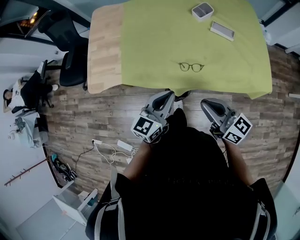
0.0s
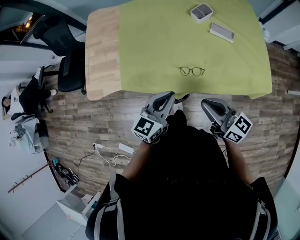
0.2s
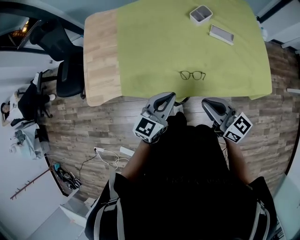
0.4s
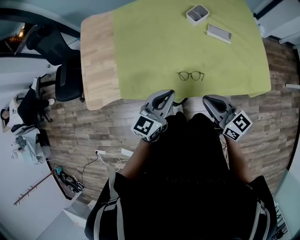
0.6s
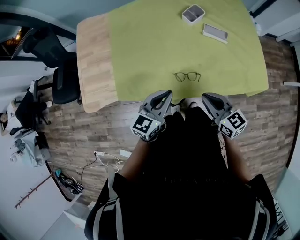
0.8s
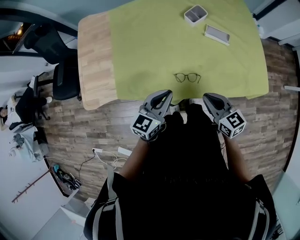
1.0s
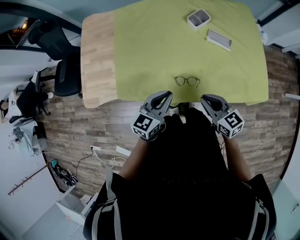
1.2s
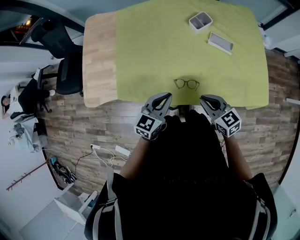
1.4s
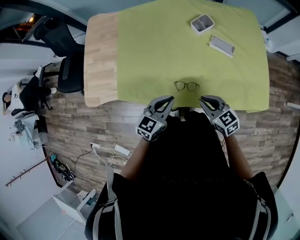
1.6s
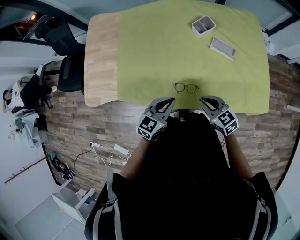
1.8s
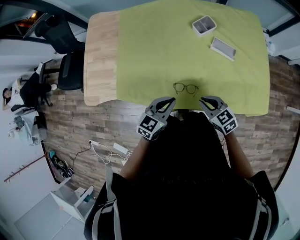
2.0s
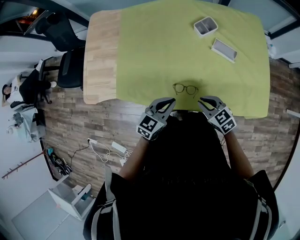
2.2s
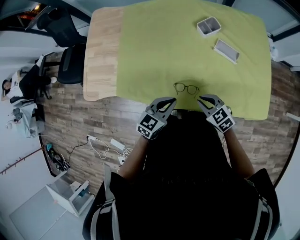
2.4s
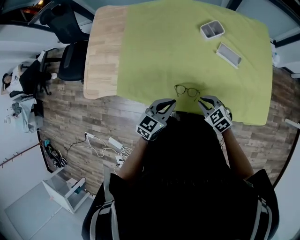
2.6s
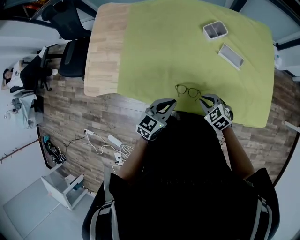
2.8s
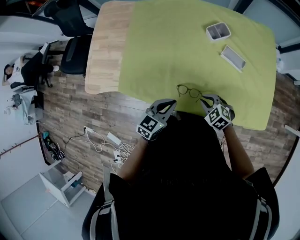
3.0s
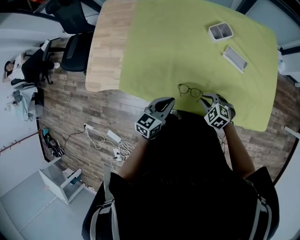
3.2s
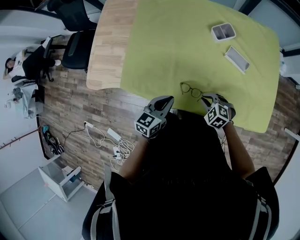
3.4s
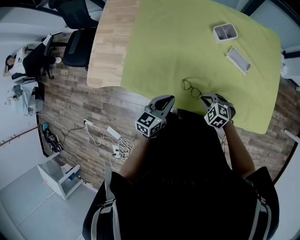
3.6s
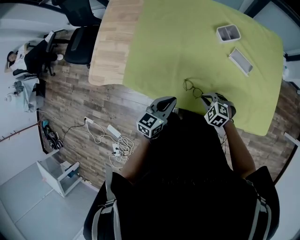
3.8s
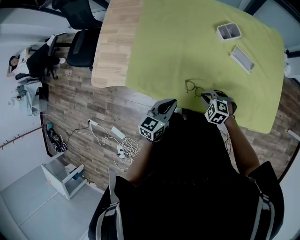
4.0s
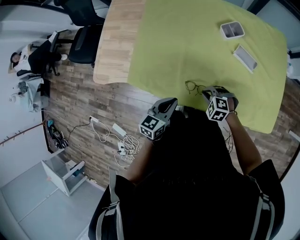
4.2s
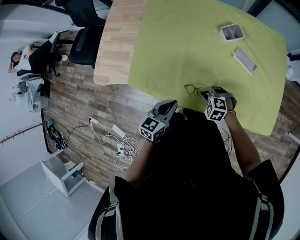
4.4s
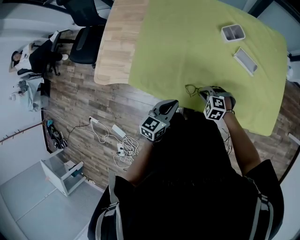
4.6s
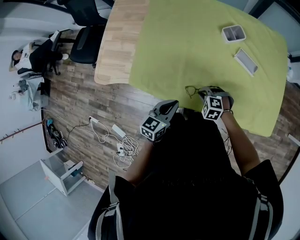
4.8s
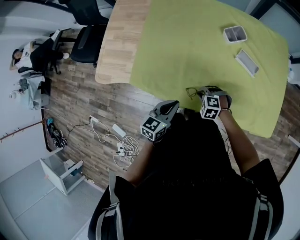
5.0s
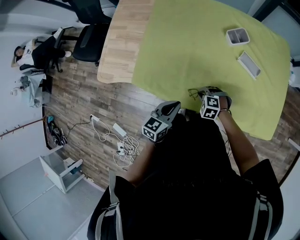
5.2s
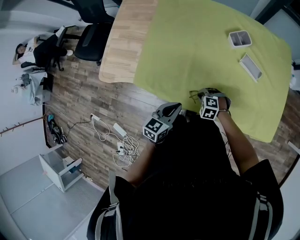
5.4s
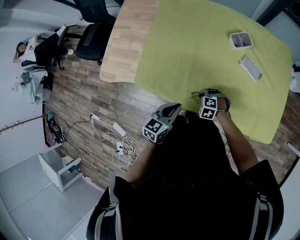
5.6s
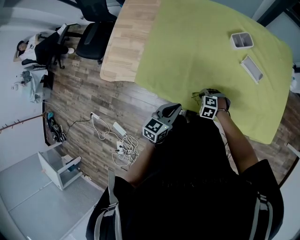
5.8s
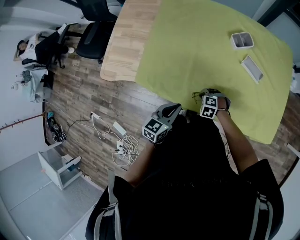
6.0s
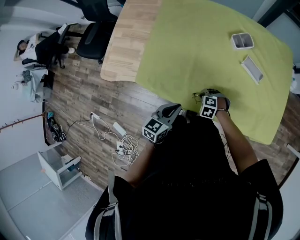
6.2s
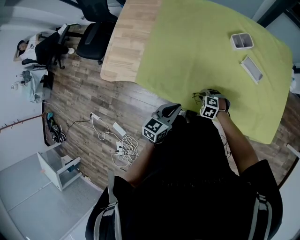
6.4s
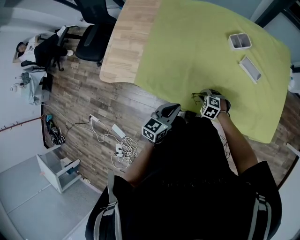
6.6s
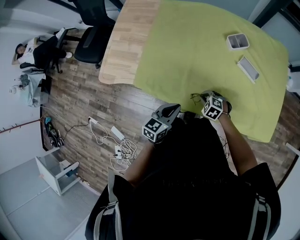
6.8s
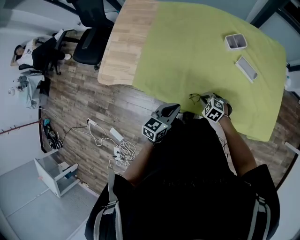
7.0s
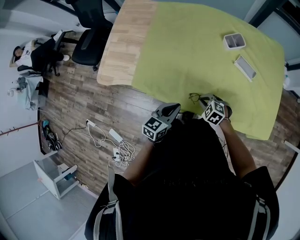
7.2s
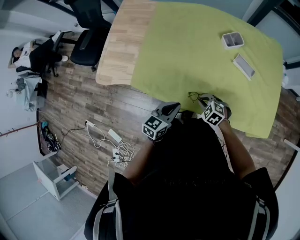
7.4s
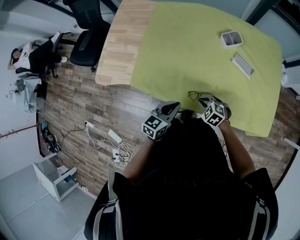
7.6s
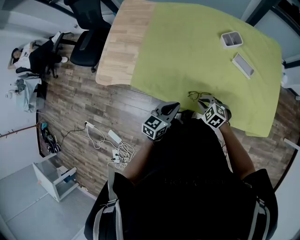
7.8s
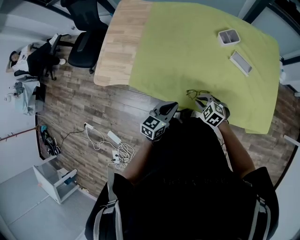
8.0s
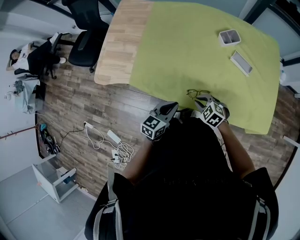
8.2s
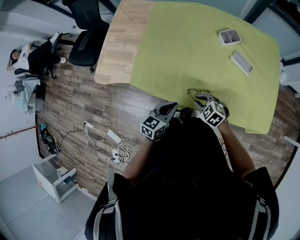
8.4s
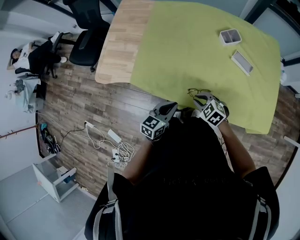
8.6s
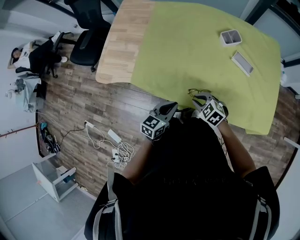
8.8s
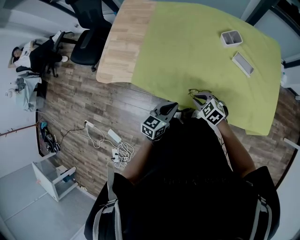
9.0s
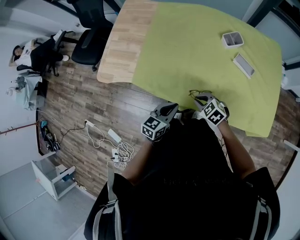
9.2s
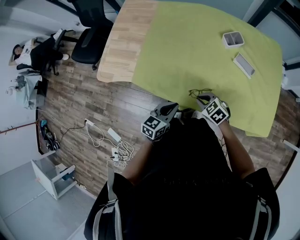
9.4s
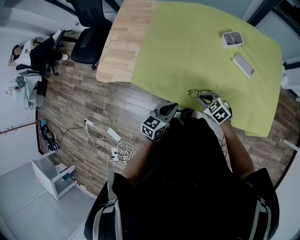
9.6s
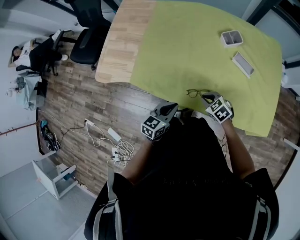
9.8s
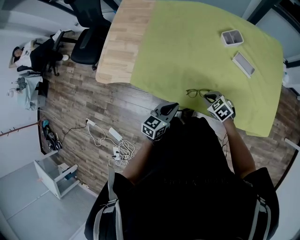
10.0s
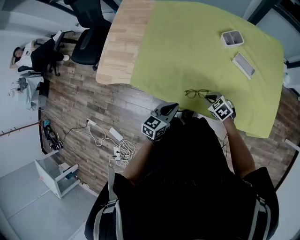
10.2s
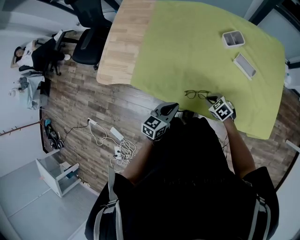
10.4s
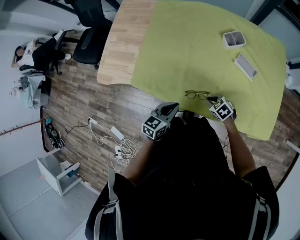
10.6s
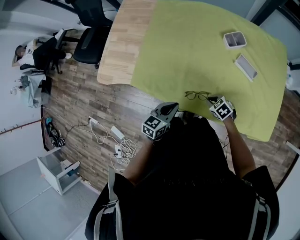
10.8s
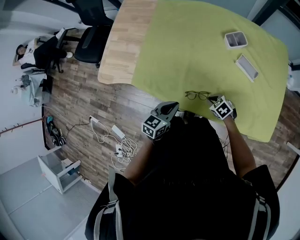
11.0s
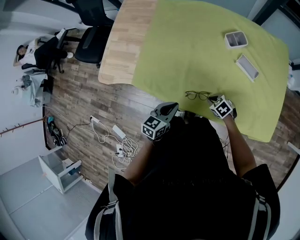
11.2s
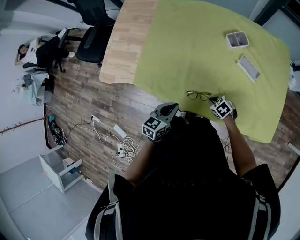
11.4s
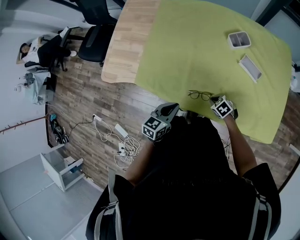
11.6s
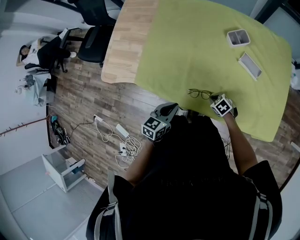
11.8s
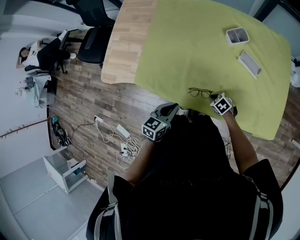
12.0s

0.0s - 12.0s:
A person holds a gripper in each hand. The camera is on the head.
0.0s - 1.6s: The left gripper travels forward and downward by approximately 10 cm. The right gripper travels downward and forward by about 15 cm, and turns by approximately 30 degrees.
1.6s - 3.0s: The right gripper is displaced downward by approximately 10 cm, and rotates some 40 degrees.
3.0s - 4.4s: The right gripper travels to the left by about 5 cm, and swivels about 30 degrees.
4.4s - 6.0s: The right gripper heads downward, covering some 5 cm.
6.0s - 7.6s: The right gripper is displaced upward by roughly 10 cm, and swivels approximately 20 degrees.
7.6s - 9.0s: The right gripper shifts by roughly 5 cm.
9.0s - 10.4s: The right gripper is displaced to the right and downward by about 10 cm.
10.4s - 12.0s: The right gripper is displaced downward by about 5 cm.

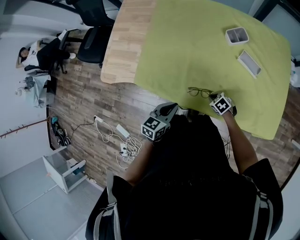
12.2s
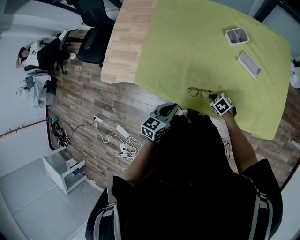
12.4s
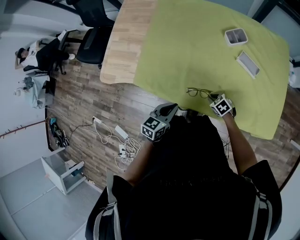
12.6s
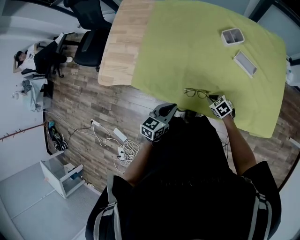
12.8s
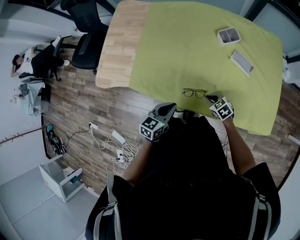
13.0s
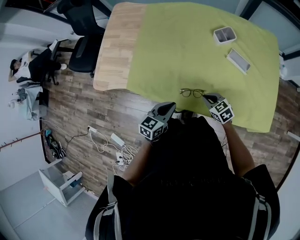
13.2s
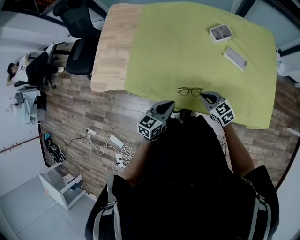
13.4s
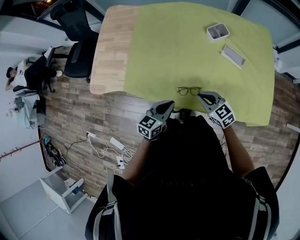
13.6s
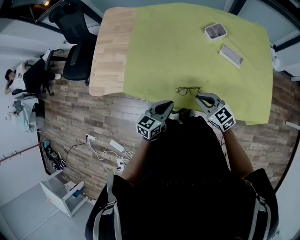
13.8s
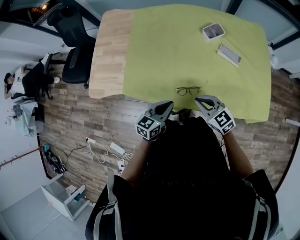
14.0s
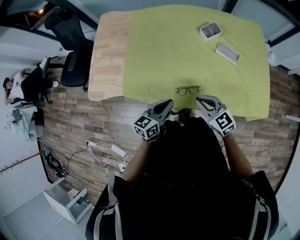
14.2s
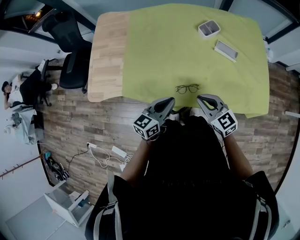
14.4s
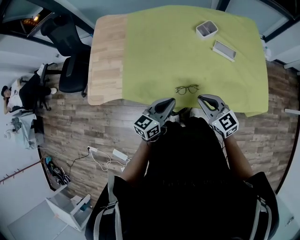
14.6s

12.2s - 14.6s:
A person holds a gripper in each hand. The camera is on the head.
12.2s - 13.4s: The right gripper travels upward by about 15 cm, and swivels roughly 30 degrees.
13.4s - 14.6s: The right gripper heads upward, covering roughly 10 cm, and changes its angle by some 20 degrees, while the left gripper shifts about 5 cm upward.

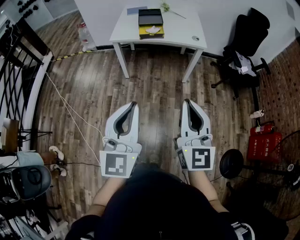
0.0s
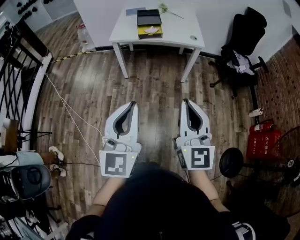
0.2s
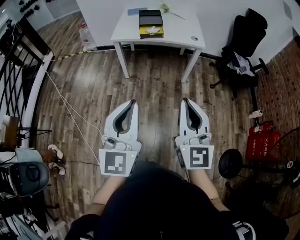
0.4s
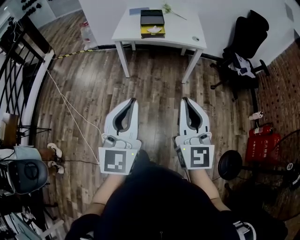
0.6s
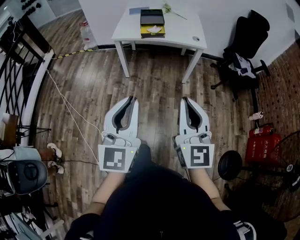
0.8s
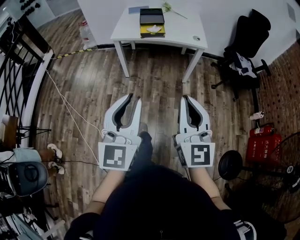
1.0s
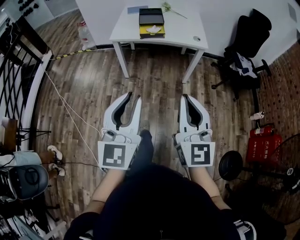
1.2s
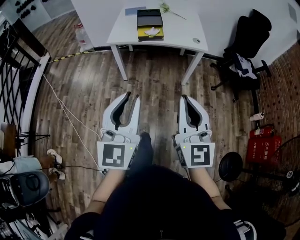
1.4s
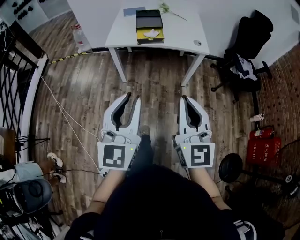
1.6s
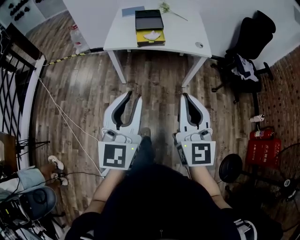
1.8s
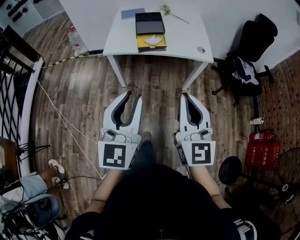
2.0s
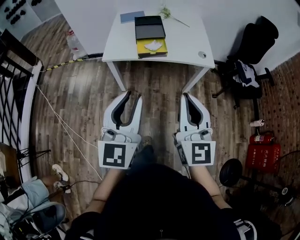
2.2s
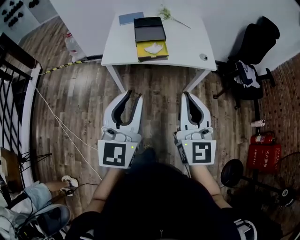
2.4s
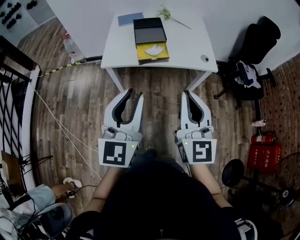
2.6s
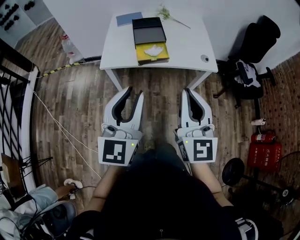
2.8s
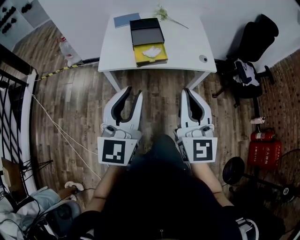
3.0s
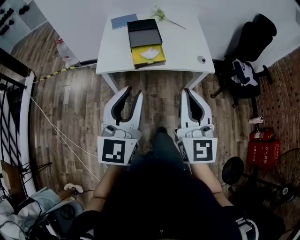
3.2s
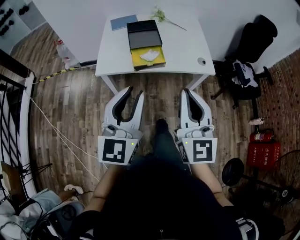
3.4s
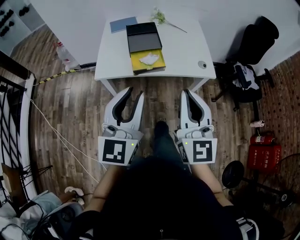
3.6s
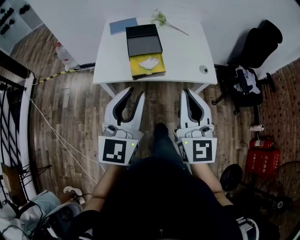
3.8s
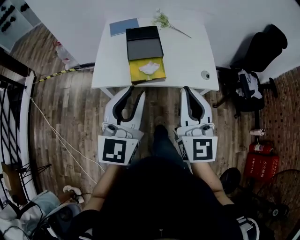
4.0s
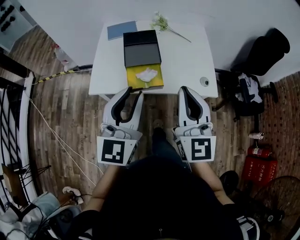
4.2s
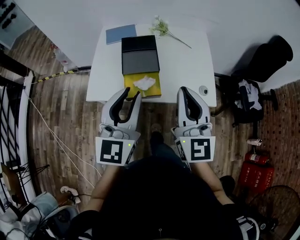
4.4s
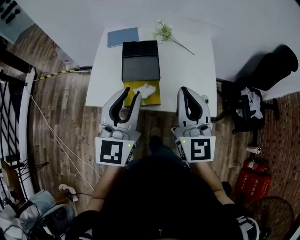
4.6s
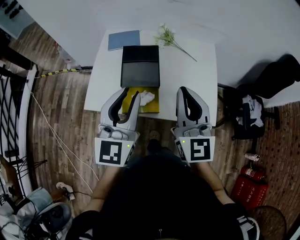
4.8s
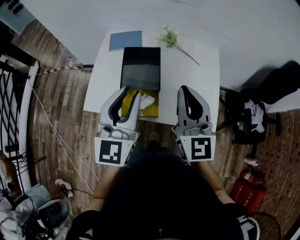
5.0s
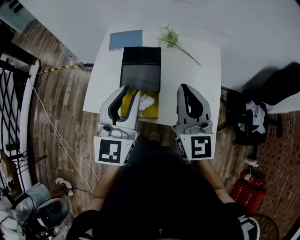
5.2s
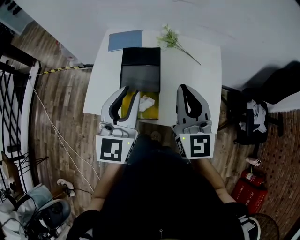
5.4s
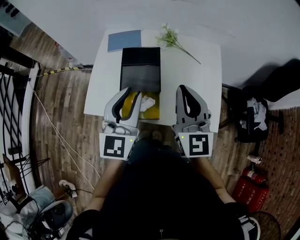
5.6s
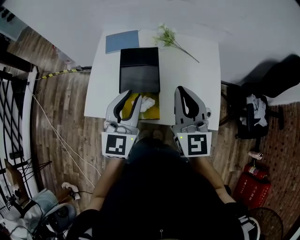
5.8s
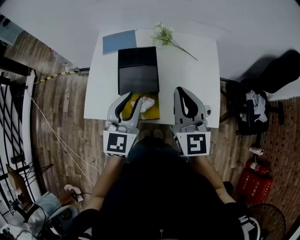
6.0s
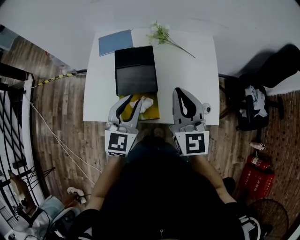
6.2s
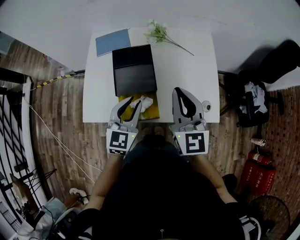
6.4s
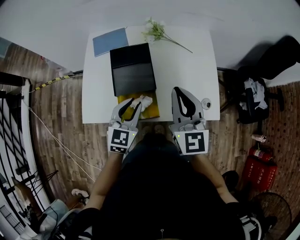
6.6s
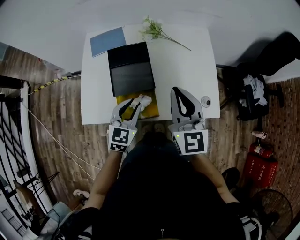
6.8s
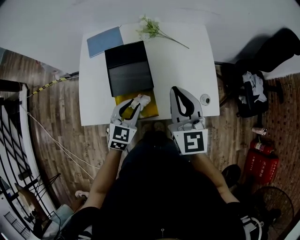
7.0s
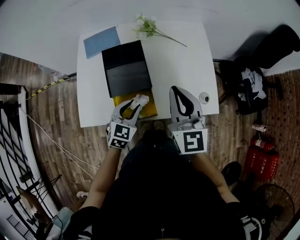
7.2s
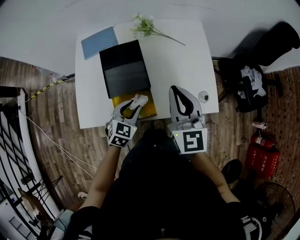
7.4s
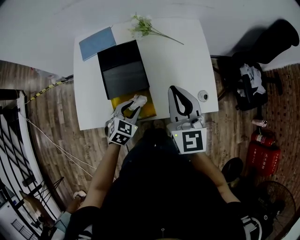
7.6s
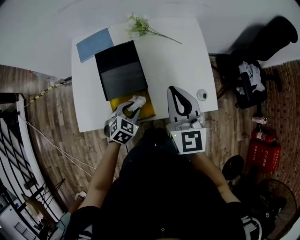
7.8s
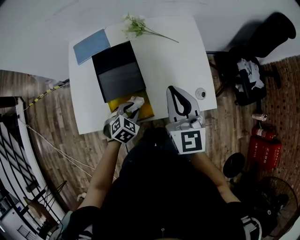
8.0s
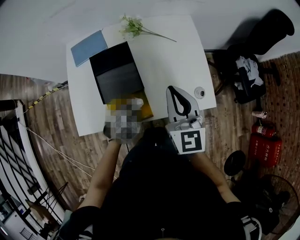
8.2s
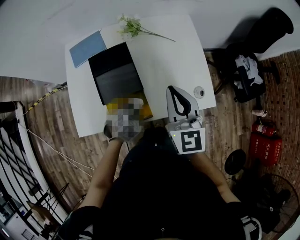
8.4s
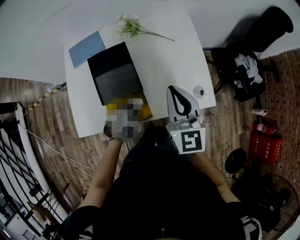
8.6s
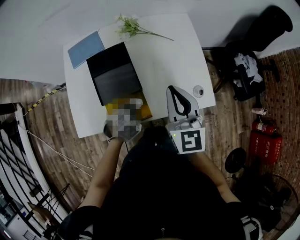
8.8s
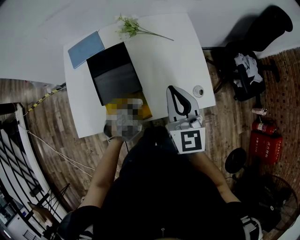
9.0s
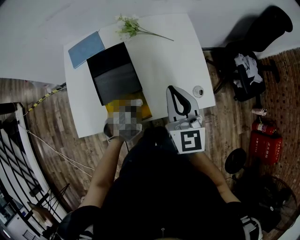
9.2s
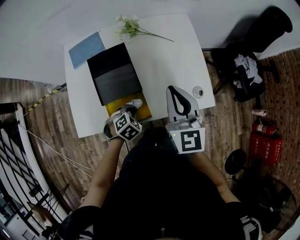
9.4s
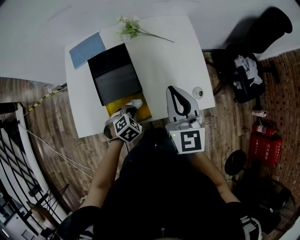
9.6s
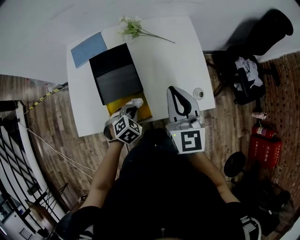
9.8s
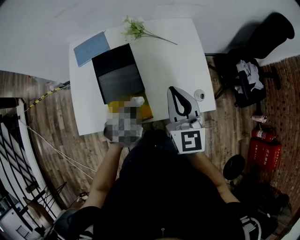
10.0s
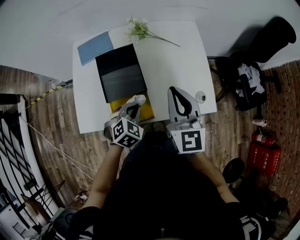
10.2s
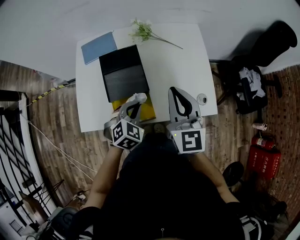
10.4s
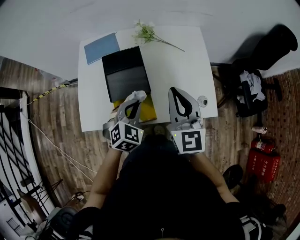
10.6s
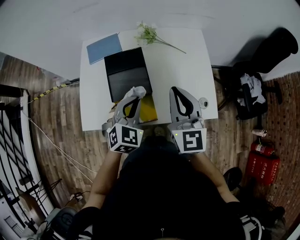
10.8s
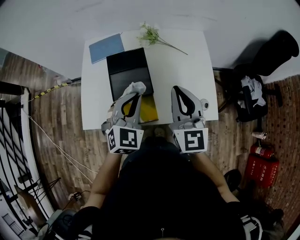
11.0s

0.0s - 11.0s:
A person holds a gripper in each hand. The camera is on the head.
0.0s - 1.6s: The two grippers go about 10 cm forward.
1.6s - 3.2s: The two grippers go some 25 cm forward.
3.2s - 4.8s: The two grippers go approximately 35 cm forward.
4.8s - 6.2s: The left gripper moves downward and forward, some 15 cm; the right gripper travels downward and forward by some 10 cm.
6.2s - 7.8s: The left gripper shifts roughly 20 cm downward, and points its fingers some 40 degrees further downward.
7.8s - 9.4s: The left gripper closes up.
9.4s - 11.0s: The left gripper is displaced upward by some 25 cm, and tilts its fingers roughly 40 degrees upward.
